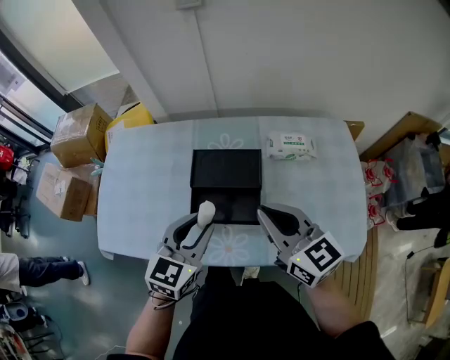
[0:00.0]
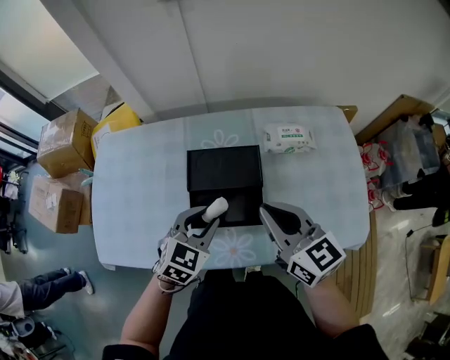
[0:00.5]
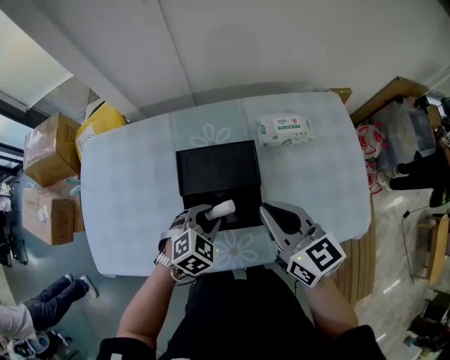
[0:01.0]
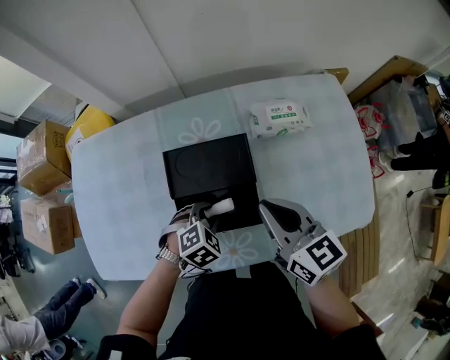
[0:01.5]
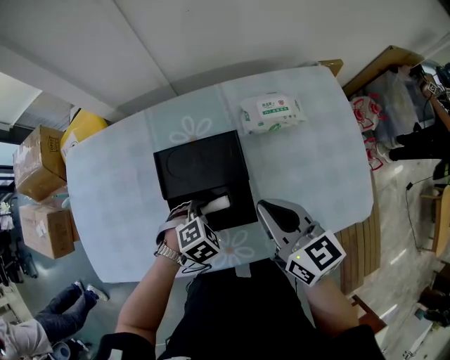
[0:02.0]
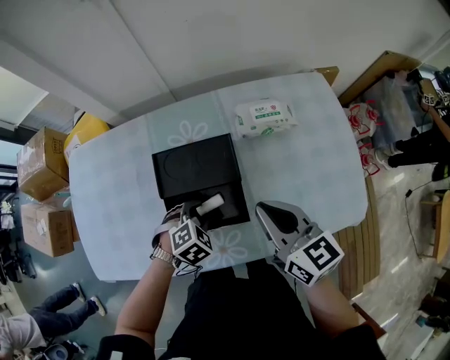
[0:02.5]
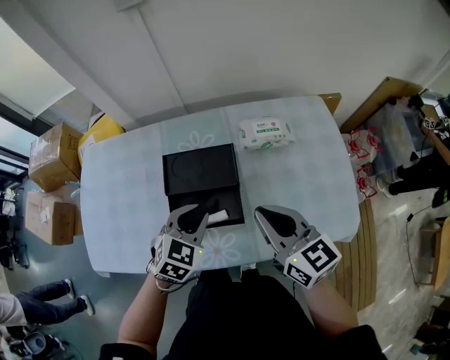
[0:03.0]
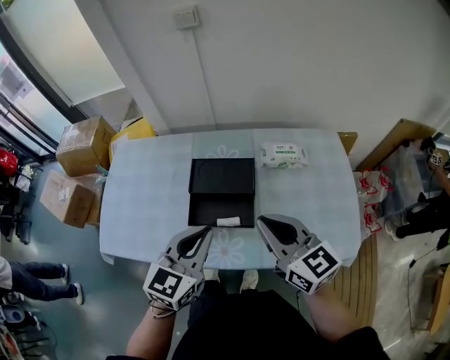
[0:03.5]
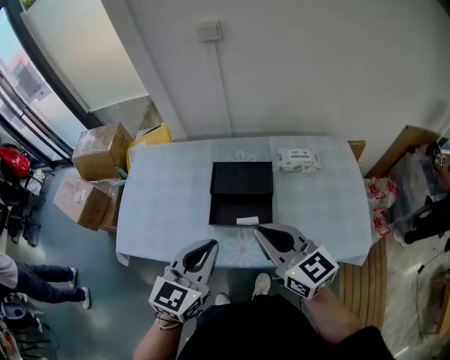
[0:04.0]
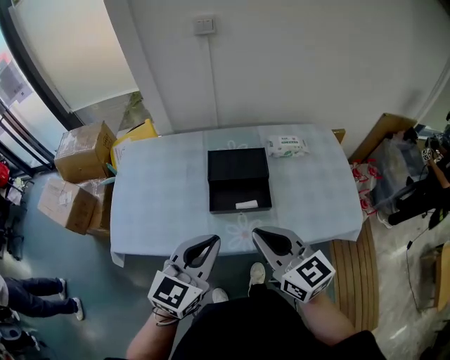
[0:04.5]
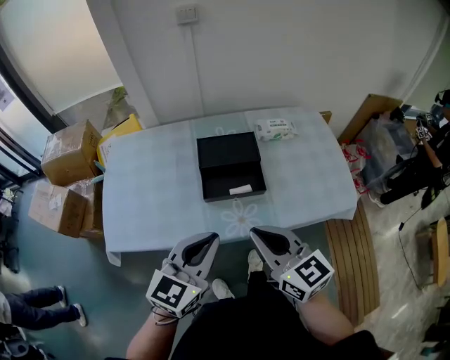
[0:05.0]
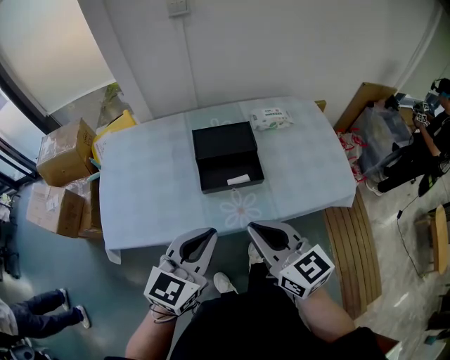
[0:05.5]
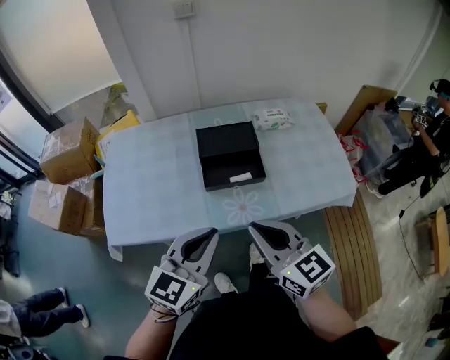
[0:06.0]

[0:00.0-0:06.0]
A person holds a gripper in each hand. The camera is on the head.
0:00.0 to 0:02.0: The right gripper shifts about 10 cm downward and forward, and changes its angle by approximately 20 degrees. The left gripper goes some 25 cm downward, and tips its fingers downward by approximately 50 degrees.
0:02.0 to 0:04.0: The right gripper moves backward, upward and to the left, some 20 cm, and turns by some 30 degrees. Meanwhile the left gripper shifts roughly 35 cm upward and backward, tips its fingers upward by approximately 60 degrees, and closes its fingers.
0:04.0 to 0:06.0: The grippers both shift backward and to the left by about 15 cm.

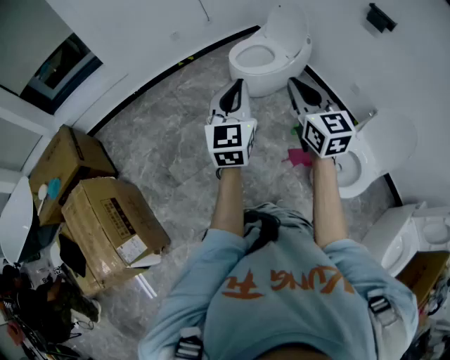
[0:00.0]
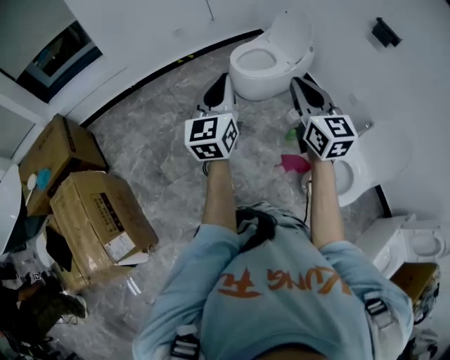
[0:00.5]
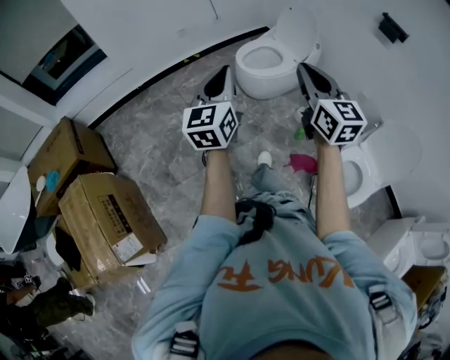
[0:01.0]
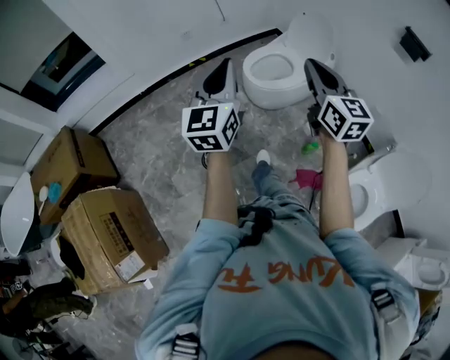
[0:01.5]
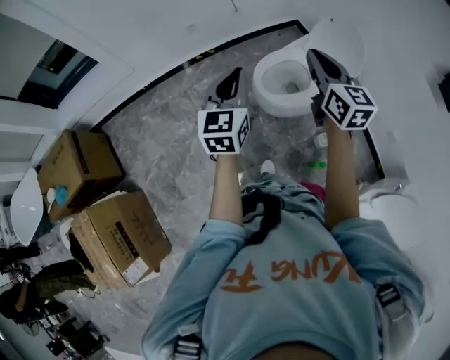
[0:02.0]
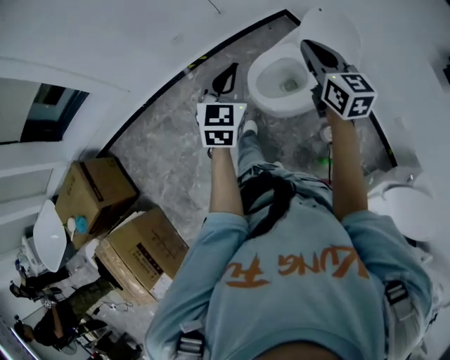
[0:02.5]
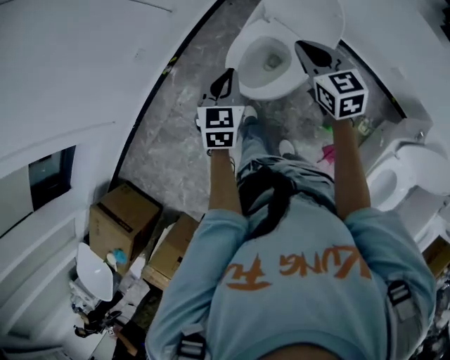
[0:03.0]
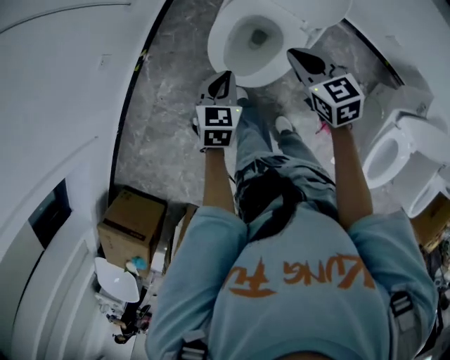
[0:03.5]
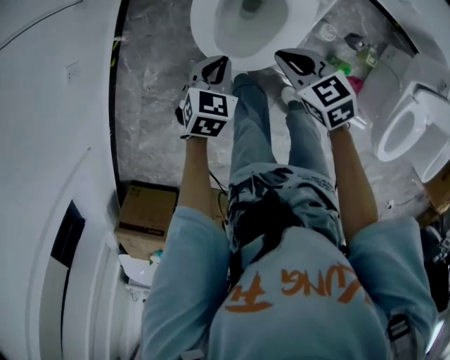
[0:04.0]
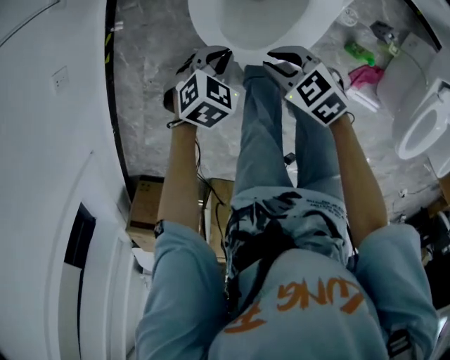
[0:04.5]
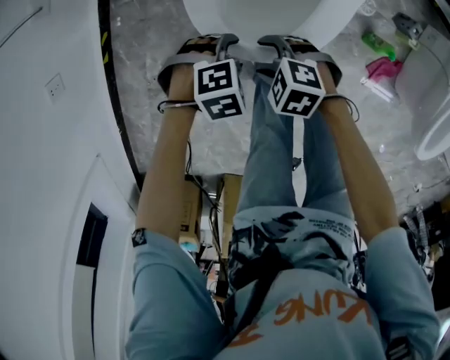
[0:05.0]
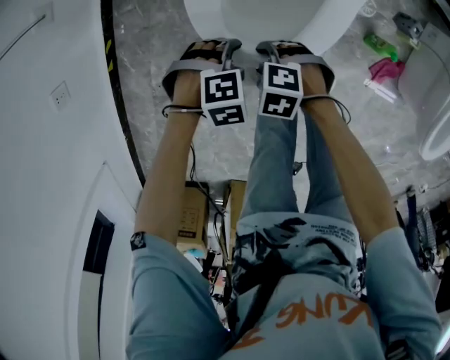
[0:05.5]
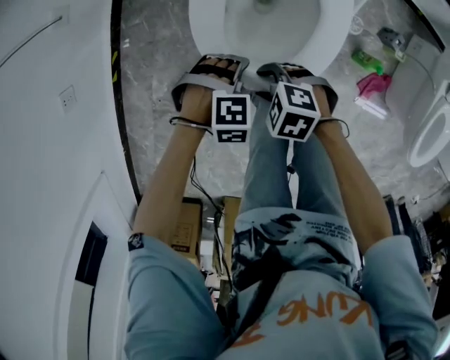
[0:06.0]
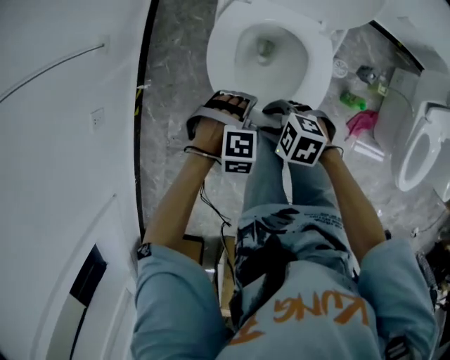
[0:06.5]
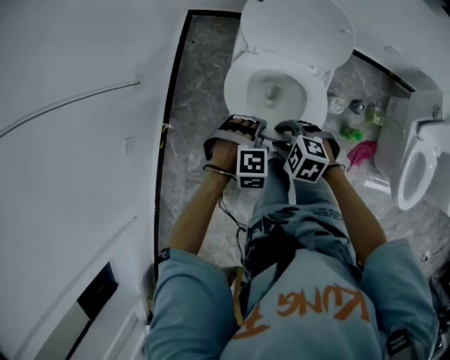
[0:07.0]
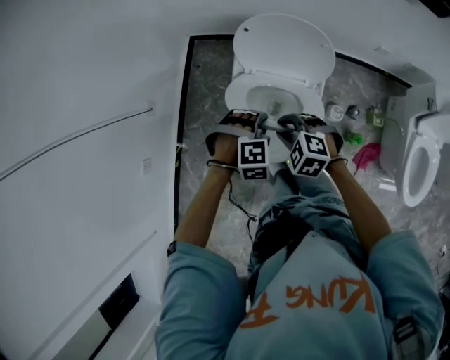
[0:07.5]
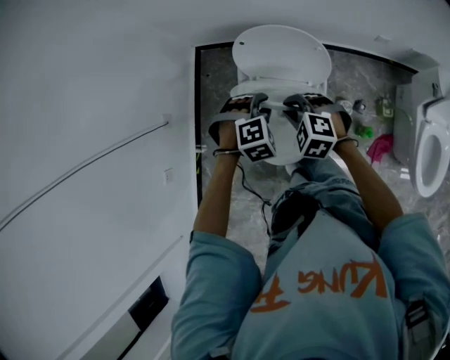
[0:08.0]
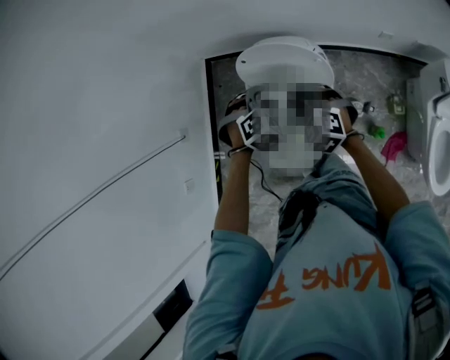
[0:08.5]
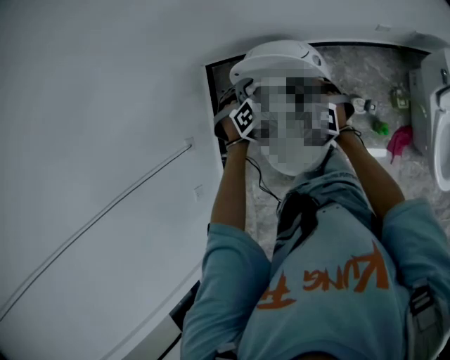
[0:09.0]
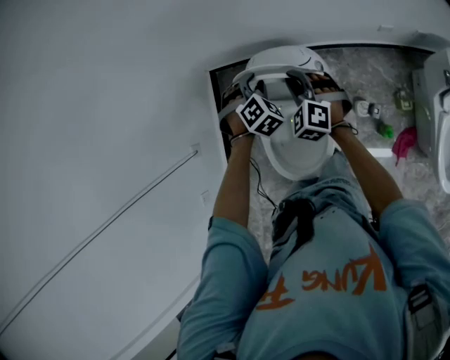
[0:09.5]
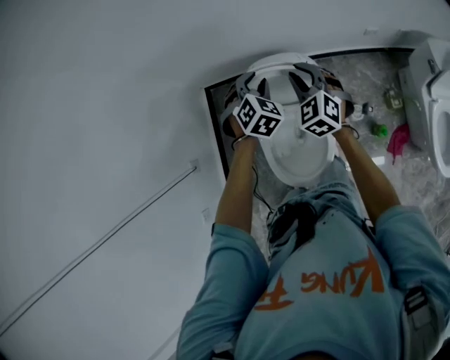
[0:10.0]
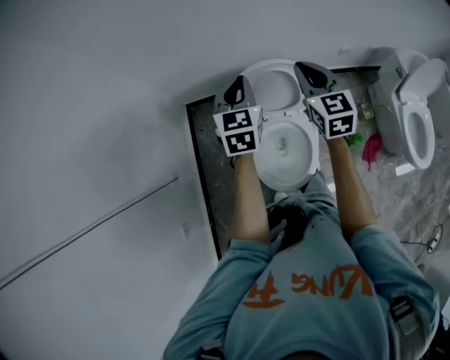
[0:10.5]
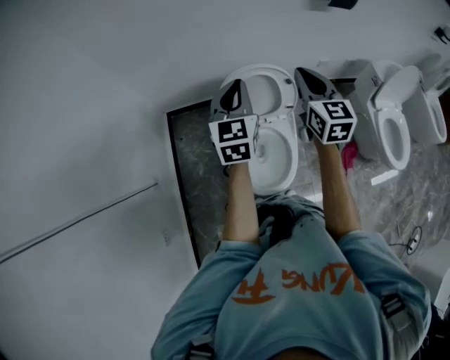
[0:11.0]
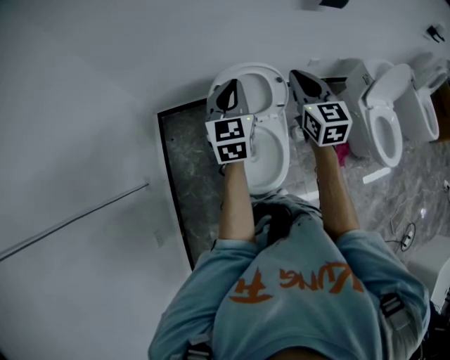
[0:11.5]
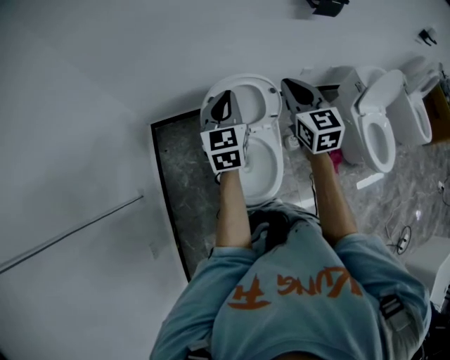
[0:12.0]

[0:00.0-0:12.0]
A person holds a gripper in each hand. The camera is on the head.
0:00.0 to 0:02.0: The pair of grippers is taken forward, roughly 50 cm.
0:02.0 to 0:04.0: The grippers both shift downward by some 40 cm. The left gripper points its fingers roughly 50 degrees further downward, while the right gripper tilts its fingers roughly 40 degrees downward.
0:04.0 to 0:06.0: Both grippers travel together downward, approximately 15 cm. The left gripper rolls clockwise, seen from behind, by some 70 degrees, and opens up. The right gripper rotates roughly 40 degrees, and opens its fingers.
0:06.0 to 0:08.0: Both grippers travel together upward, about 35 cm. The left gripper swivels roughly 20 degrees, and closes its fingers. Meanwhile the right gripper changes its angle by approximately 40 degrees, and closes.
0:08.0 to 0:10.0: The right gripper travels forward, to the right and upward by roughly 20 cm, and rotates about 40 degrees. Meanwhile the left gripper goes approximately 20 cm forward, and changes its angle by about 30 degrees.
0:10.0 to 0:12.0: The grippers both shift upward and backward by about 20 cm. The left gripper tips its fingers upward by approximately 40 degrees, and closes up. The right gripper rotates roughly 30 degrees, and closes up.

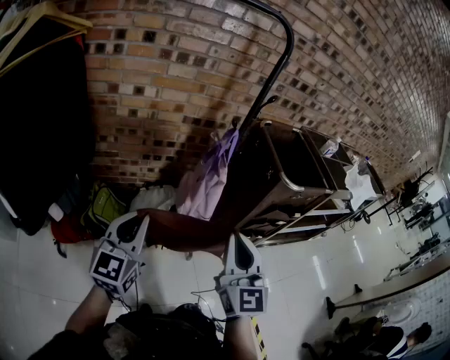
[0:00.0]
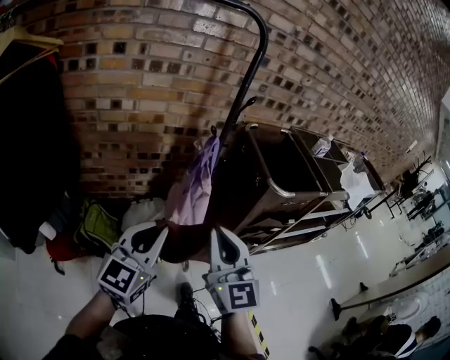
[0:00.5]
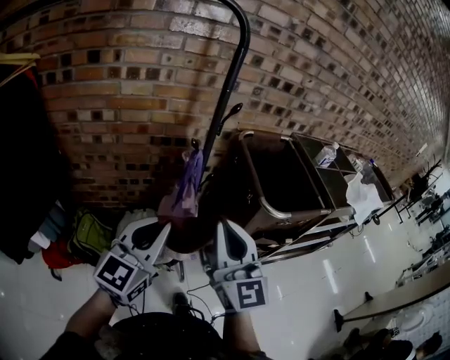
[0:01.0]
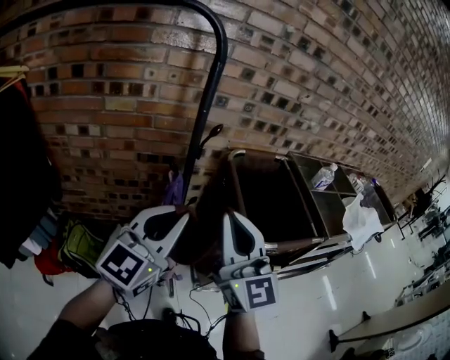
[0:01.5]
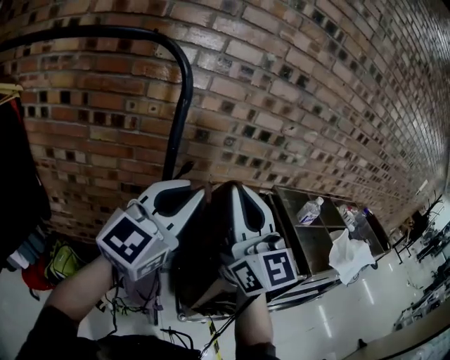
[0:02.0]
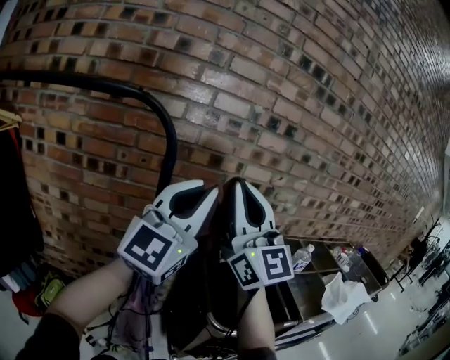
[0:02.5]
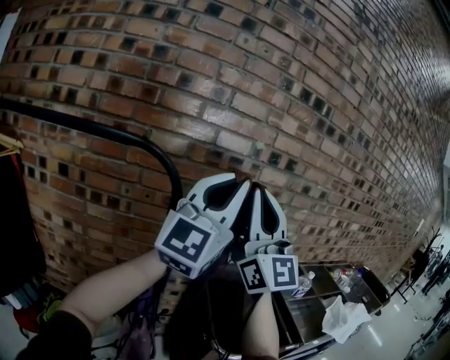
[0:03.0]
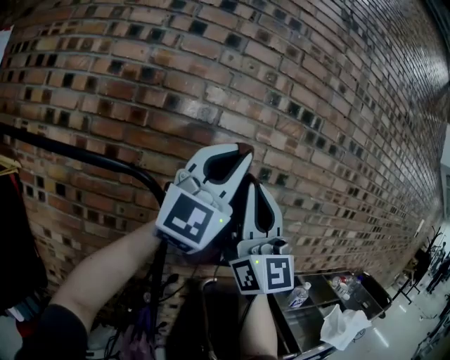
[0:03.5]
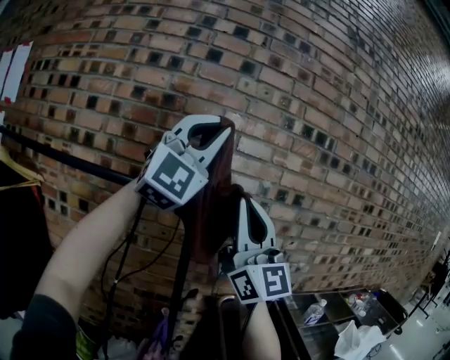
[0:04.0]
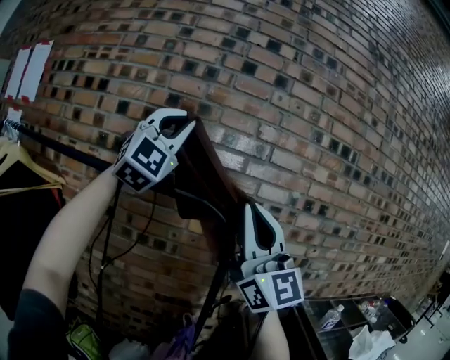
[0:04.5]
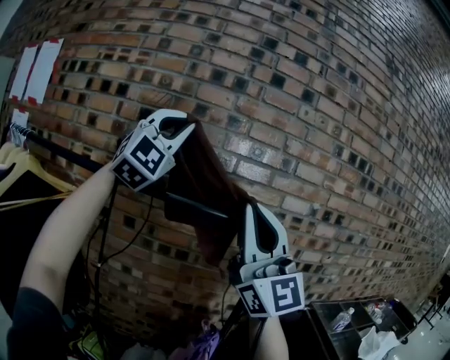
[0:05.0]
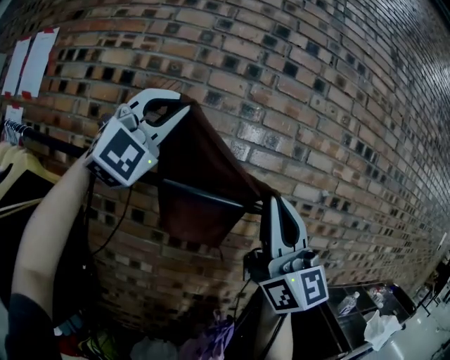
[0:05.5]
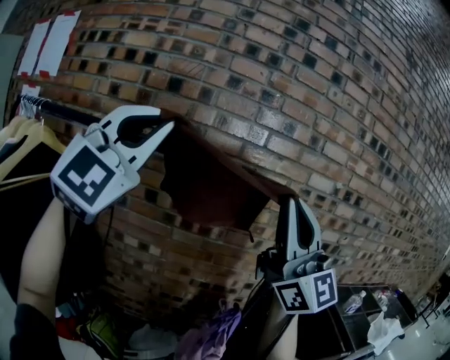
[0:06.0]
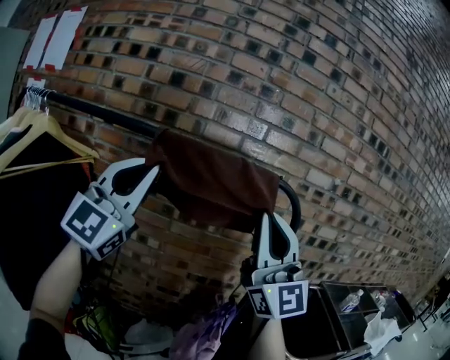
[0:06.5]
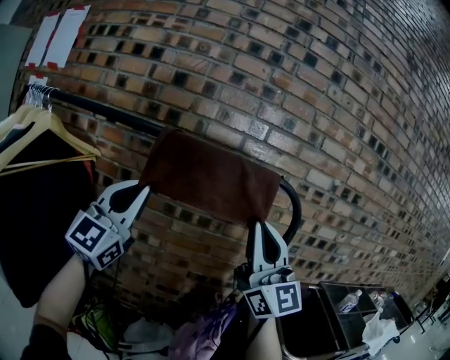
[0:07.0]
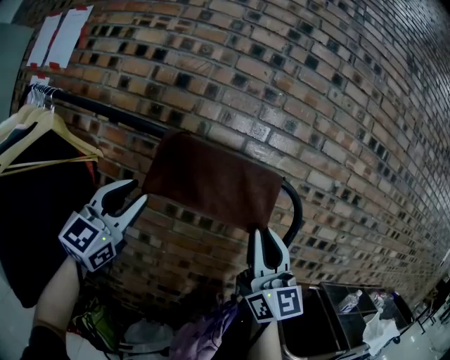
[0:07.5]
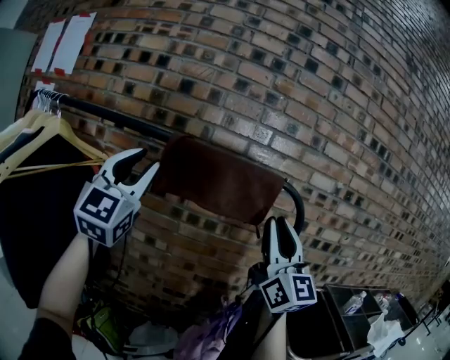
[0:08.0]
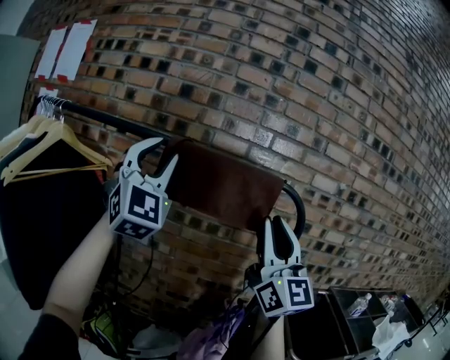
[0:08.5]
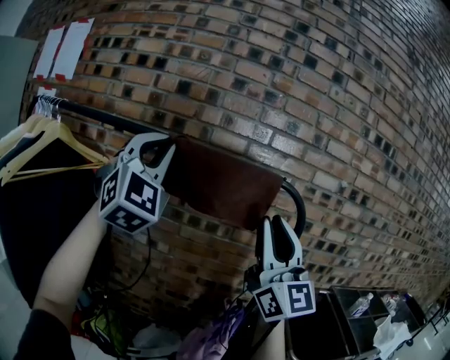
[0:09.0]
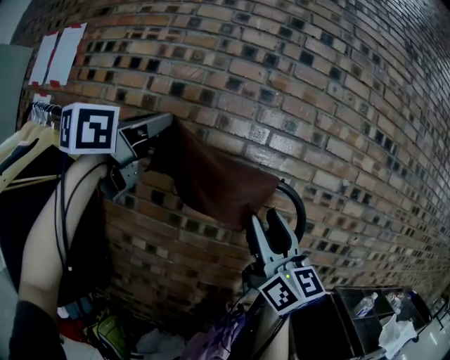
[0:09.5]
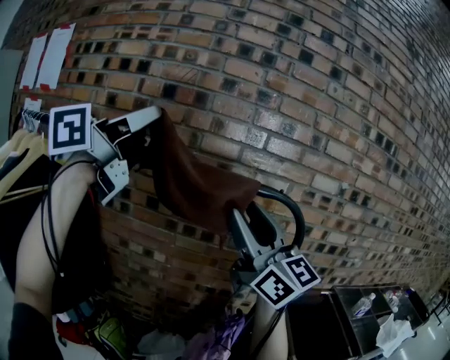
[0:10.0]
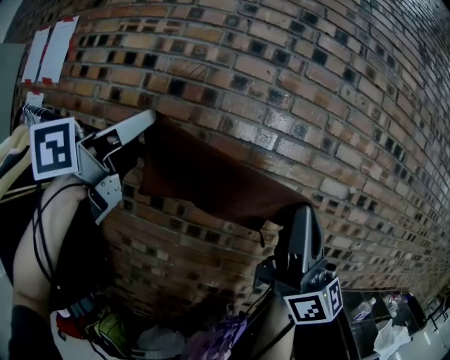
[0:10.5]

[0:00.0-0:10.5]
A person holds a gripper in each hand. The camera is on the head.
0:00.0 to 0:02.0: The two grippers travel together, forward and to the right, about 40 cm. Both grippers travel together upward, roughly 25 cm. The left gripper swivels roughly 30 degrees; the right gripper swivels some 30 degrees.
0:02.0 to 0:04.0: The right gripper travels upward by roughly 25 cm, and swivels roughly 30 degrees. The left gripper travels upward by some 40 cm, and twists approximately 50 degrees clockwise, seen from behind.
0:04.0 to 0:06.5: The right gripper is displaced to the left and downward by some 25 cm. Meanwhile the left gripper goes approximately 40 cm to the left and downward, and changes its angle by some 30 degrees.
0:06.5 to 0:08.5: The left gripper reaches some 5 cm downward, then returns, rotates some 40 degrees, and opens.
0:08.5 to 0:10.5: Both grippers move upward, approximately 10 cm. The right gripper turns by about 20 degrees, and opens, then closes again; the left gripper rolls counterclockwise, seen from behind, by about 70 degrees, and closes its fingers.
